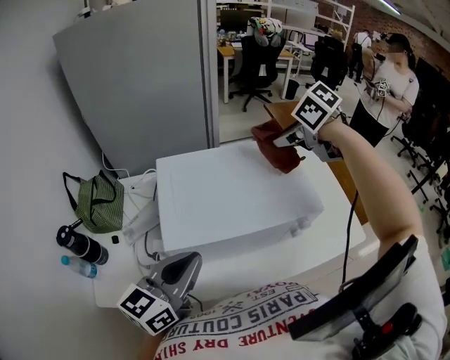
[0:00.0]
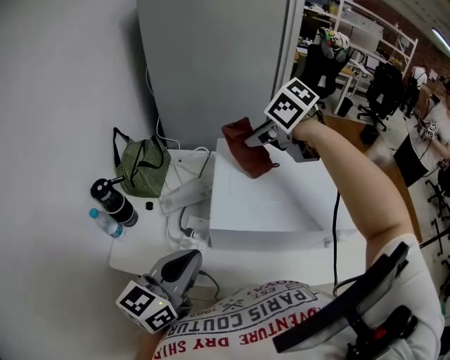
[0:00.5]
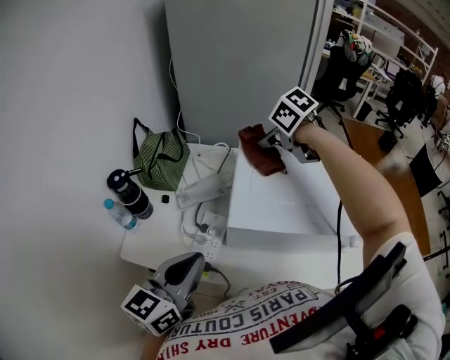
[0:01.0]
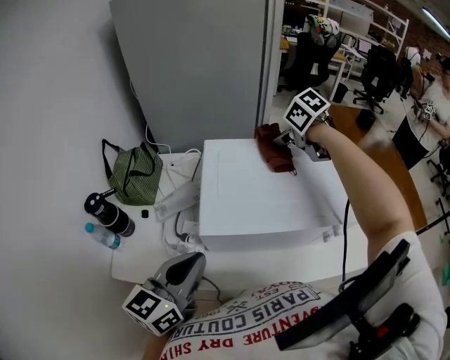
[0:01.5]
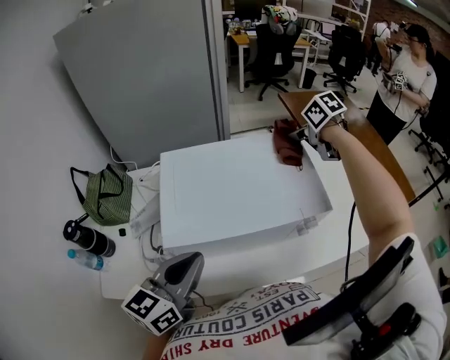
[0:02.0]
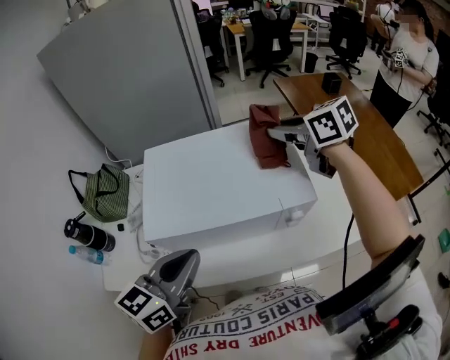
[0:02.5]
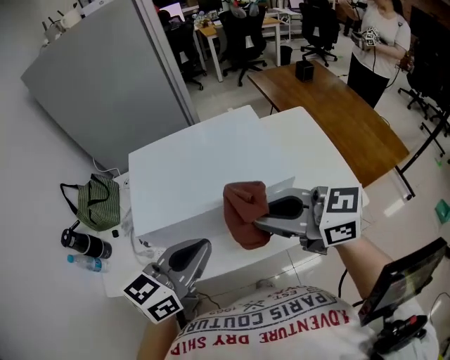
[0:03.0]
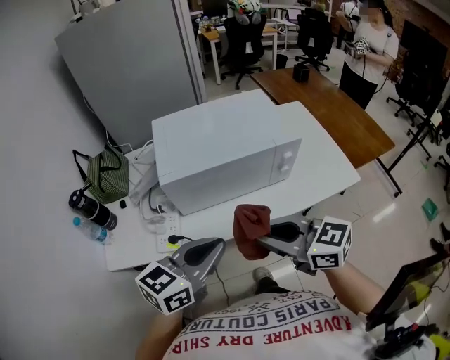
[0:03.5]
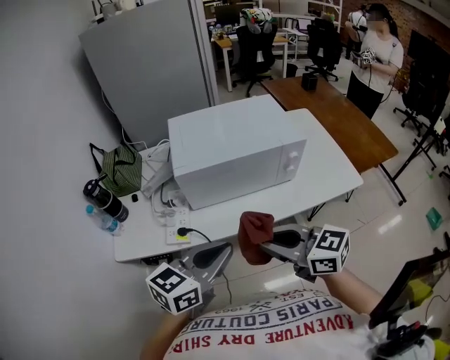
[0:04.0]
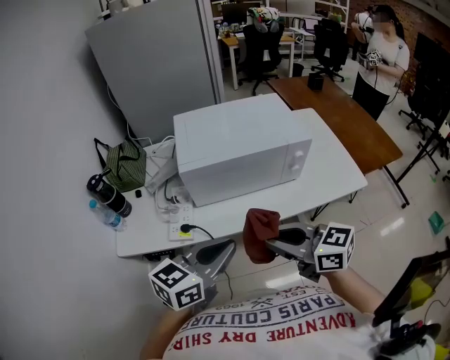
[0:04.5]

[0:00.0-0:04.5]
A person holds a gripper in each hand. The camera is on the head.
0:02.0 to 0:04.5: The left gripper moves backward, some 20 cm; the right gripper is displaced backward and to the left by approximately 60 cm, and angles its fingers upward, by approximately 40 degrees.

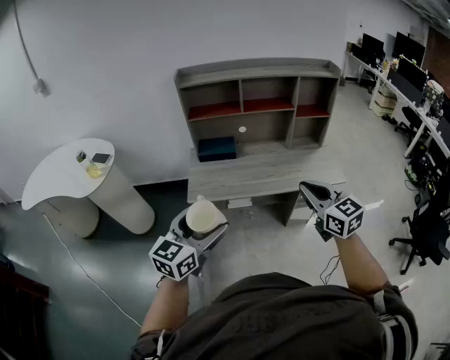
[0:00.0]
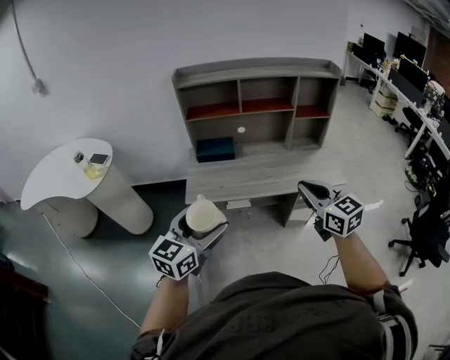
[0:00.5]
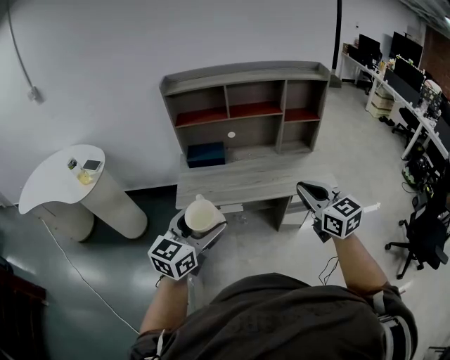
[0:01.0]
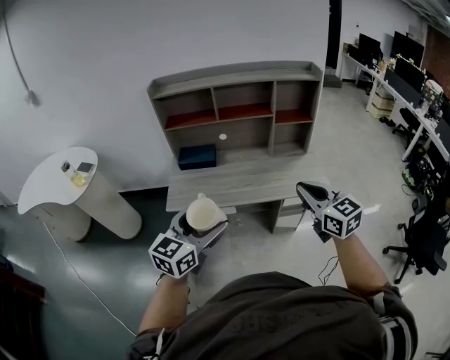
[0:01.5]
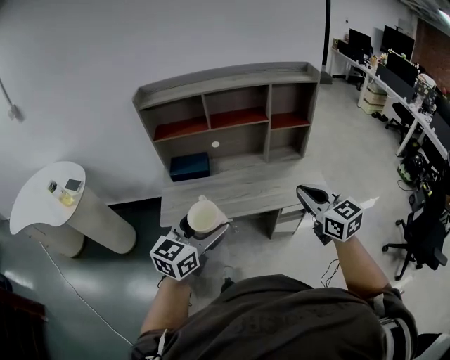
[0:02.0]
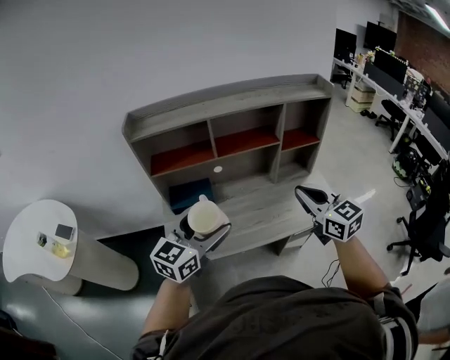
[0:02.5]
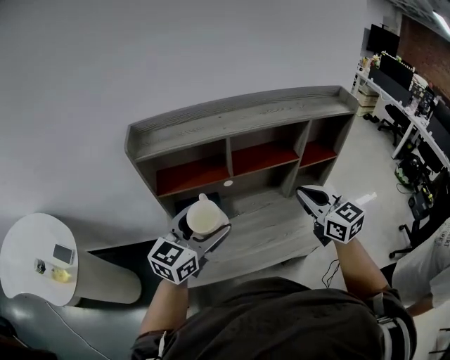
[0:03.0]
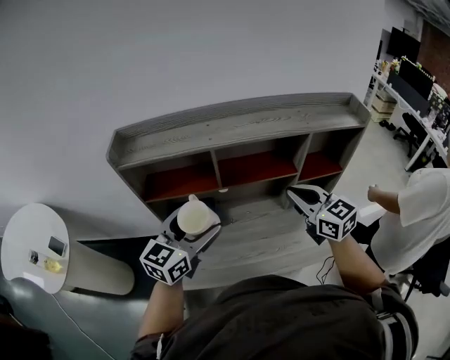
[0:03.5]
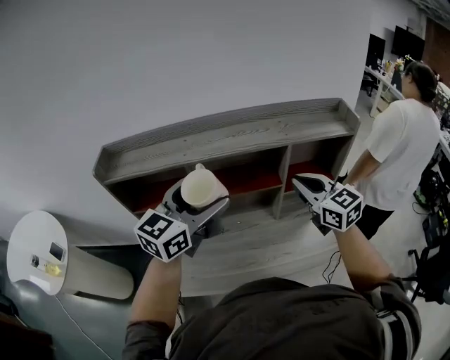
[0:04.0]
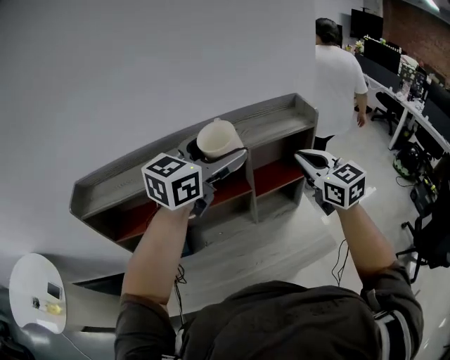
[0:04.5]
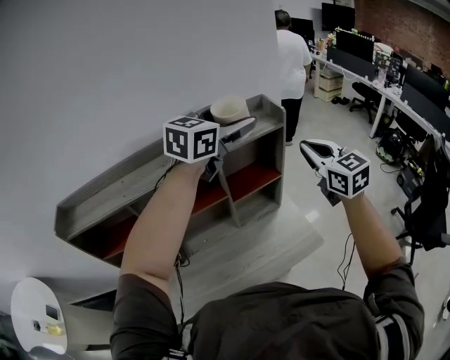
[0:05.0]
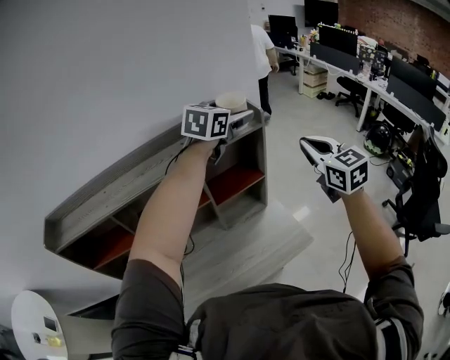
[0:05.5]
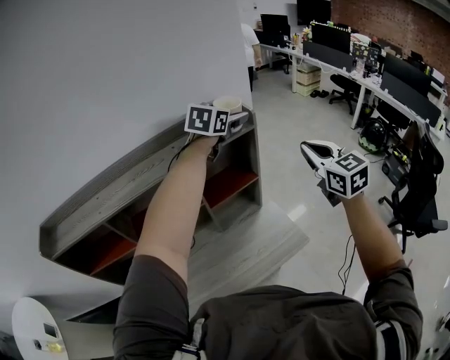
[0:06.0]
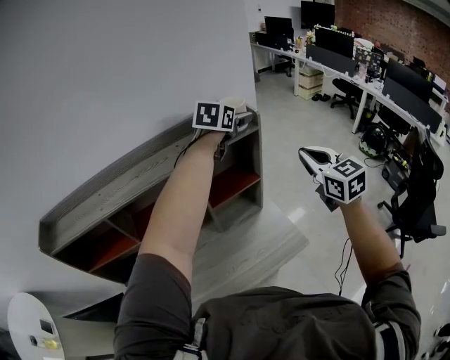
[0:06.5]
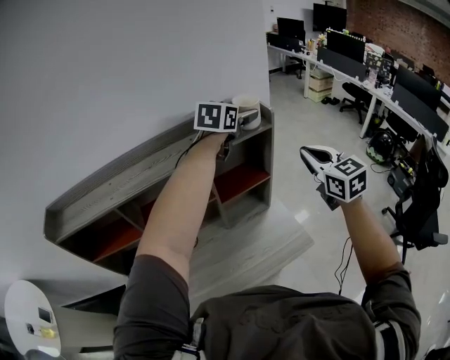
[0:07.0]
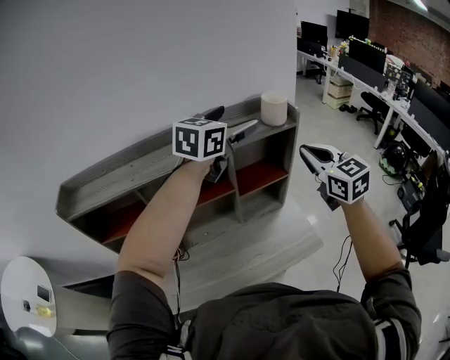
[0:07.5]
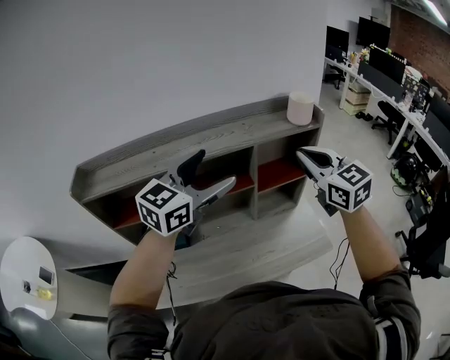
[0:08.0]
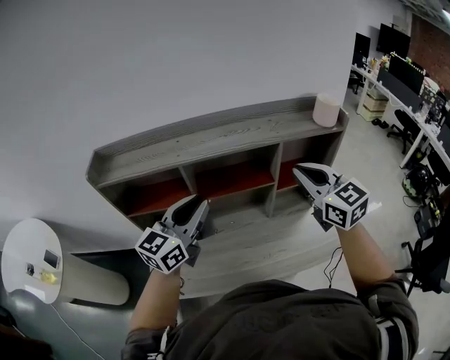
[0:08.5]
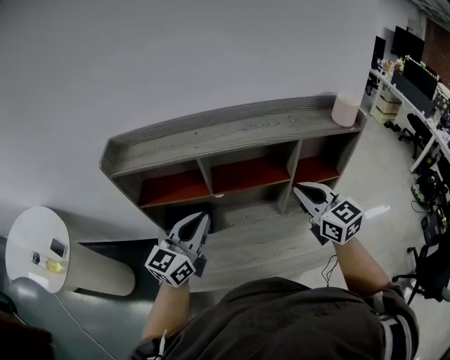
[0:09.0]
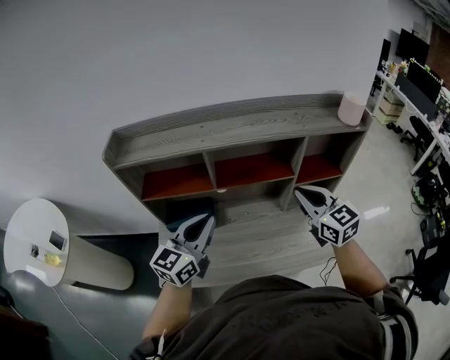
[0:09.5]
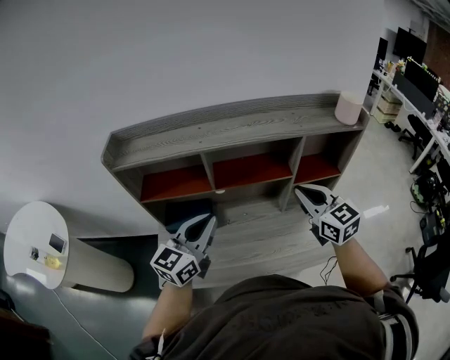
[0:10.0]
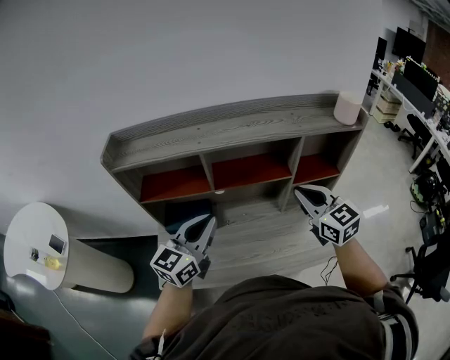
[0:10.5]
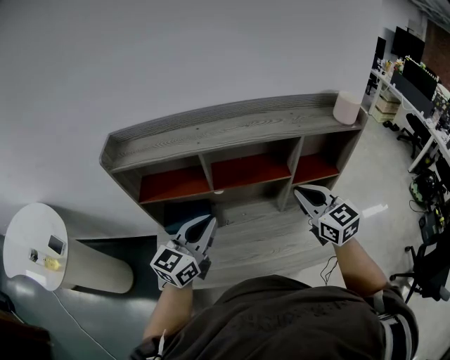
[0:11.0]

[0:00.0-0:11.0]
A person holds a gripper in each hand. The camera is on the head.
0:00.0 to 0:02.0: Both grippers move to the right and forward, roughly 20 cm.
0:02.0 to 0:03.5: Both grippers move forward, approximately 35 cm.
0:03.5 to 0:05.5: The left gripper shifts by approximately 60 cm, and changes its angle by some 30 degrees; the right gripper moves approximately 40 cm, and turns by about 30 degrees.
0:05.5 to 0:07.5: The right gripper goes approximately 10 cm to the left, while the left gripper is displaced to the left and backward by some 15 cm.
0:07.5 to 0:09.0: The right gripper shifts some 20 cm to the left, and rotates some 20 degrees, while the left gripper goes roughly 40 cm to the left, backward and downward, changes its angle by roughly 30 degrees, and closes.
0:09.0 to 0:11.0: The grippers move only a little.

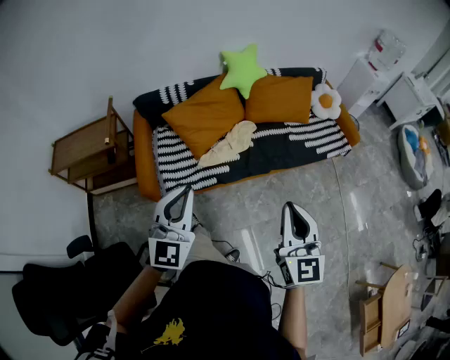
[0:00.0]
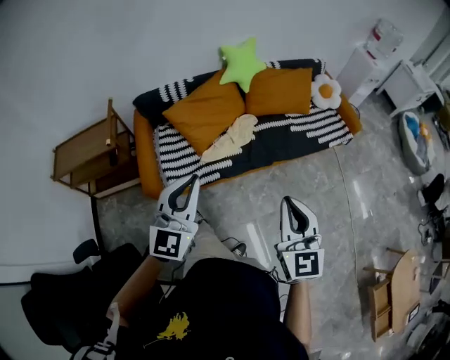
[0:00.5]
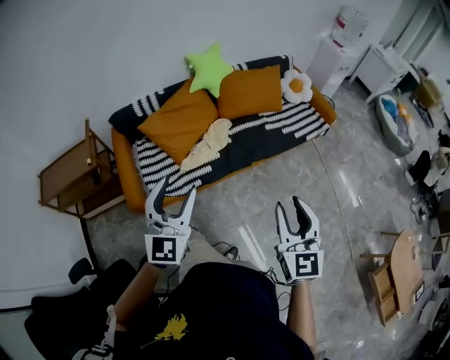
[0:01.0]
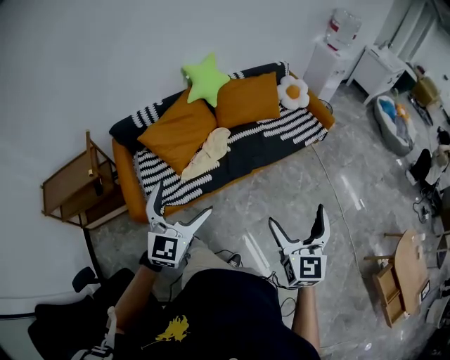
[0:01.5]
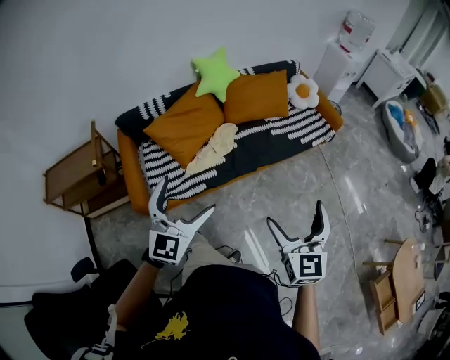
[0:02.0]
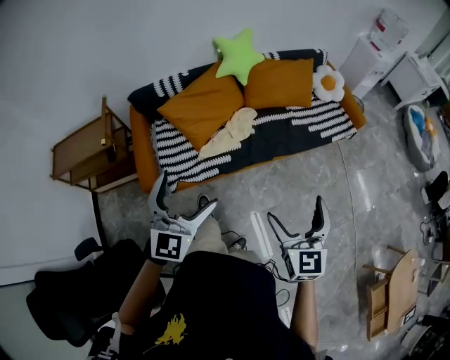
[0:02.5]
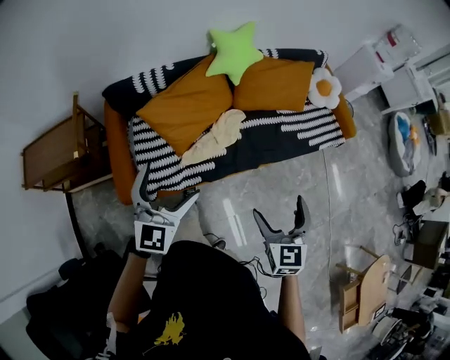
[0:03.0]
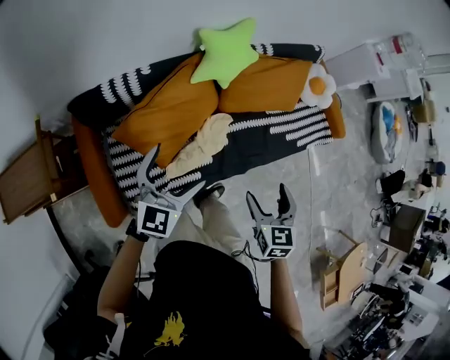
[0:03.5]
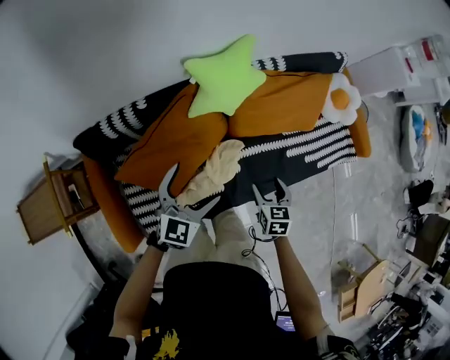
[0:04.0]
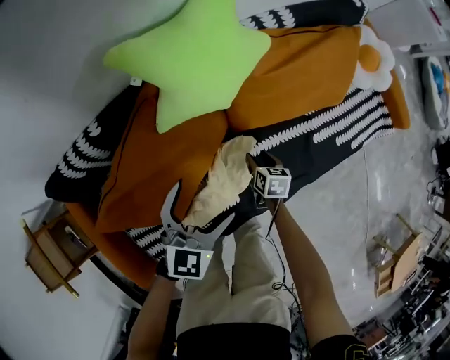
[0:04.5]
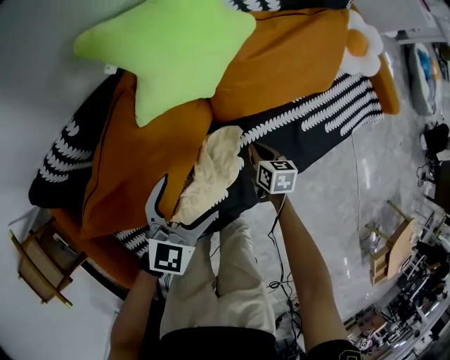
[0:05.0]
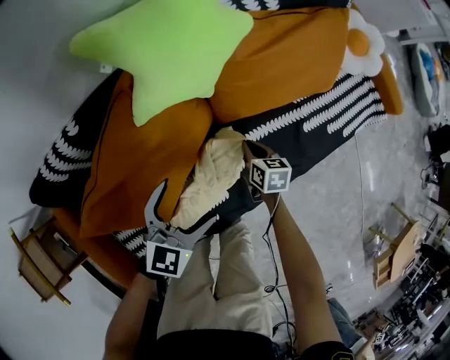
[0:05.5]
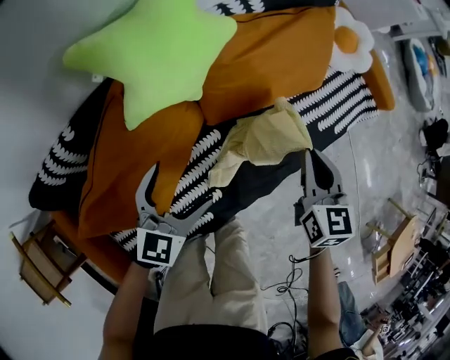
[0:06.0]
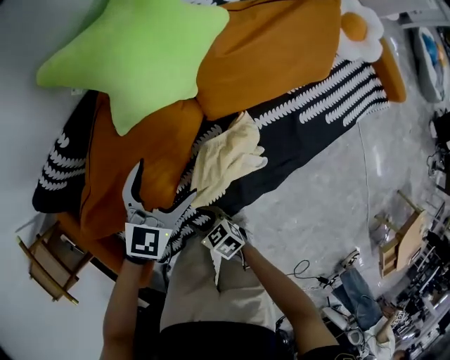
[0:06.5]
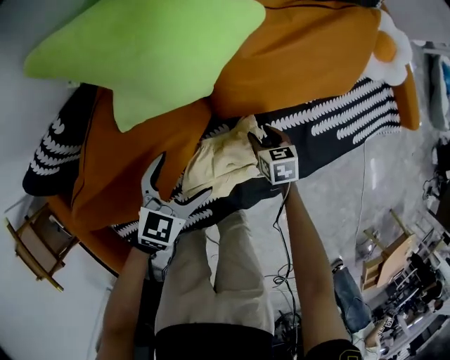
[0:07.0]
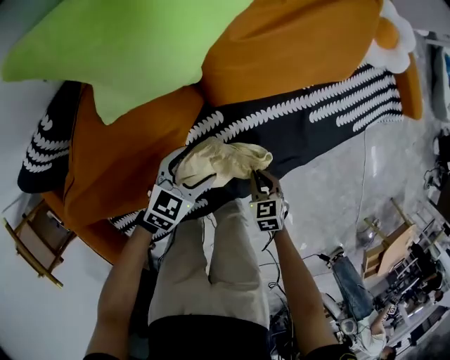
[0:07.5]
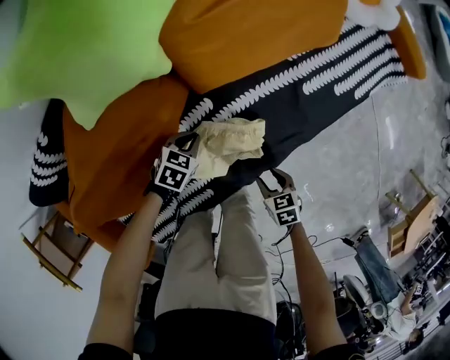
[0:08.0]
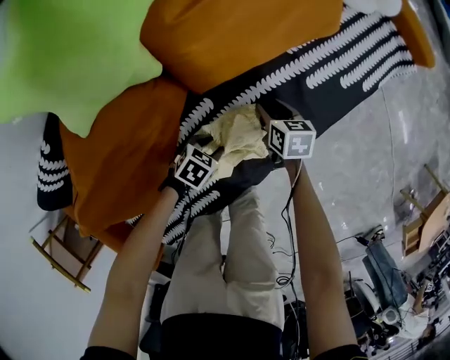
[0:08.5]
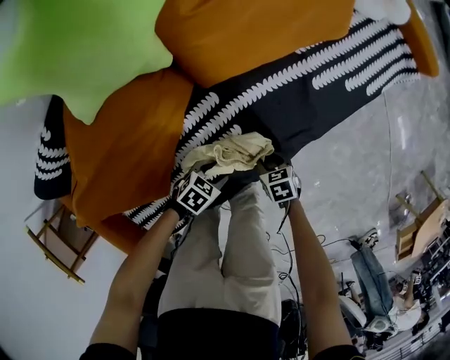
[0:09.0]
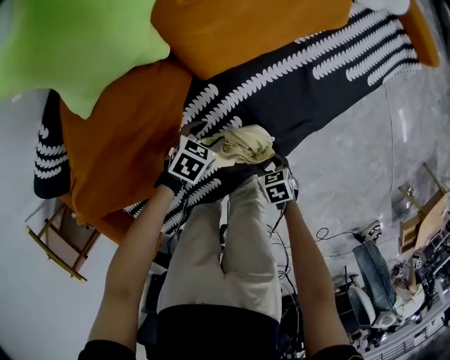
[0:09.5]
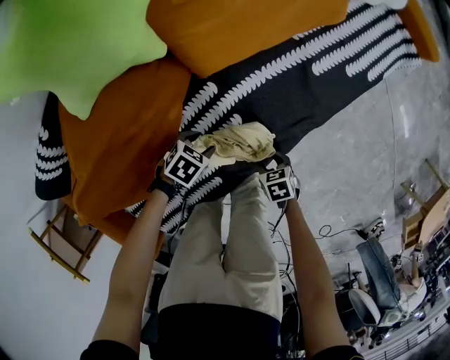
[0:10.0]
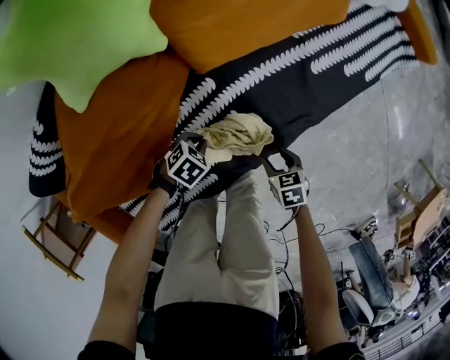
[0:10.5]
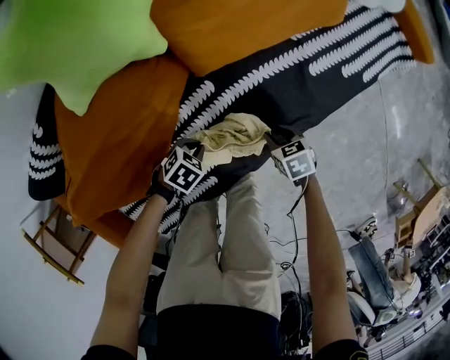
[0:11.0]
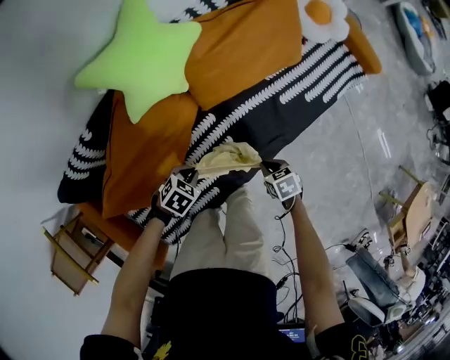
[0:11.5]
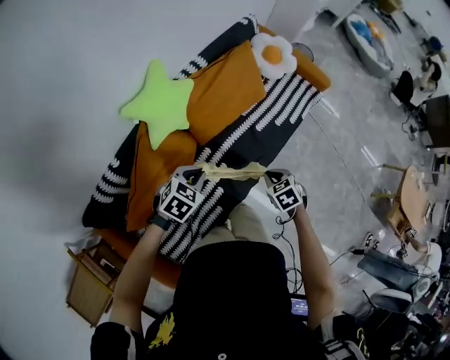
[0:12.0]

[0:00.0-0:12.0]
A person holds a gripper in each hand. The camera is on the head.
0:00.0 to 0:02.0: The grippers both shift to the right by roughly 10 cm. The left gripper opens, while the right gripper opens.
0:02.0 to 0:04.0: Both grippers are carried forward, about 70 cm. The left gripper swivels roughly 20 degrees. Meanwhile the right gripper moves downward, roughly 35 cm, angles its fingers downward, by about 40 degrees, and closes.
0:04.0 to 0:06.0: The right gripper goes approximately 15 cm forward and to the right, reaches about 35 cm downward, then returns, swivels about 20 degrees, and closes up. The left gripper travels downward and forward by about 25 cm.
0:06.0 to 0:08.0: The two grippers go roughly 30 cm downward. The right gripper points its fingers some 30 degrees further downward; the left gripper tips its fingers downward by some 40 degrees, and closes its fingers.
0:08.0 to 0:10.0: The left gripper opens.
0:10.0 to 0:12.0: Both grippers travel together upward, some 50 cm. The right gripper rotates approximately 20 degrees. The left gripper turns by approximately 30 degrees, and closes its fingers.
